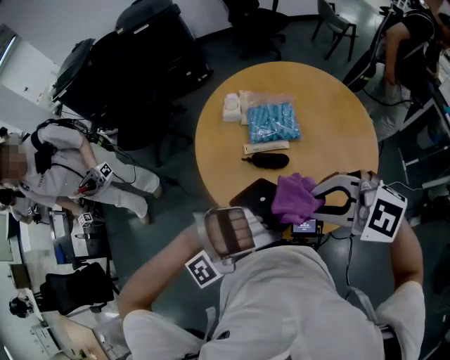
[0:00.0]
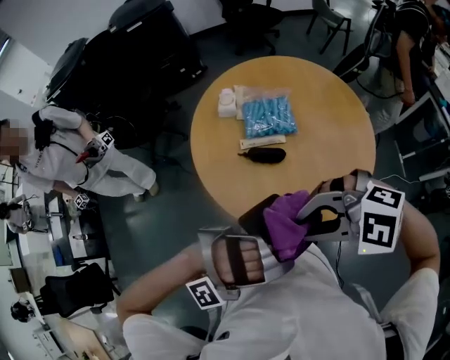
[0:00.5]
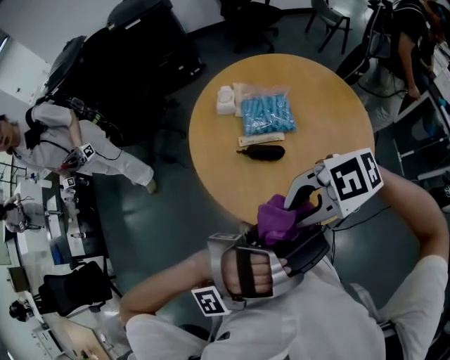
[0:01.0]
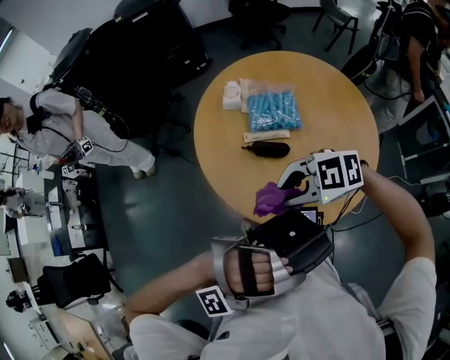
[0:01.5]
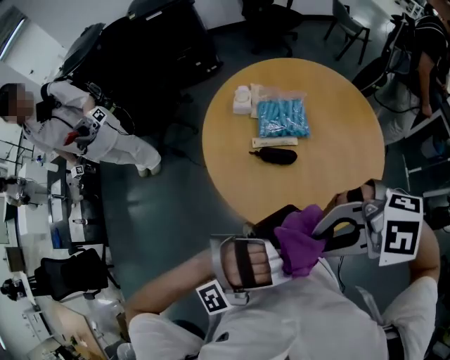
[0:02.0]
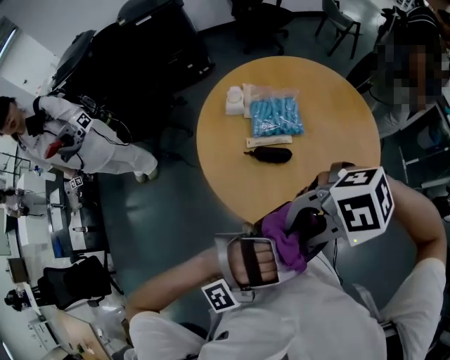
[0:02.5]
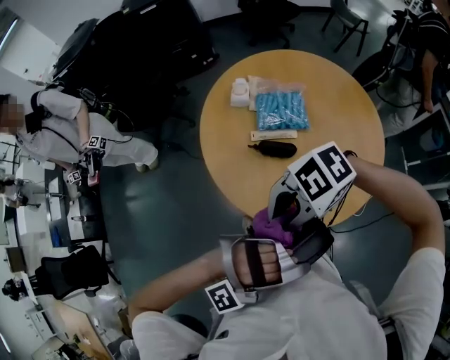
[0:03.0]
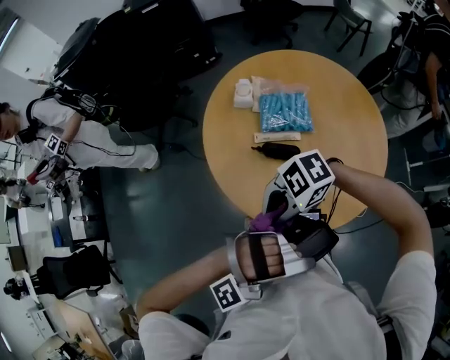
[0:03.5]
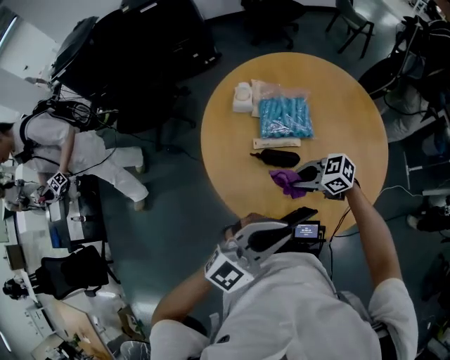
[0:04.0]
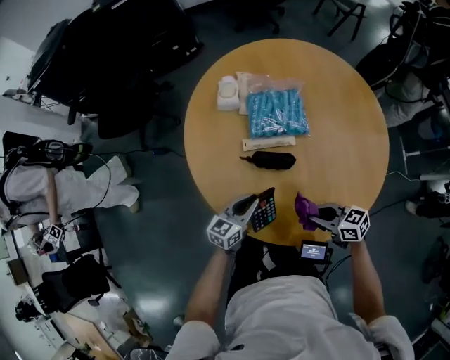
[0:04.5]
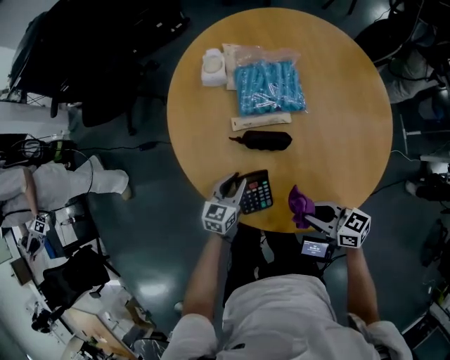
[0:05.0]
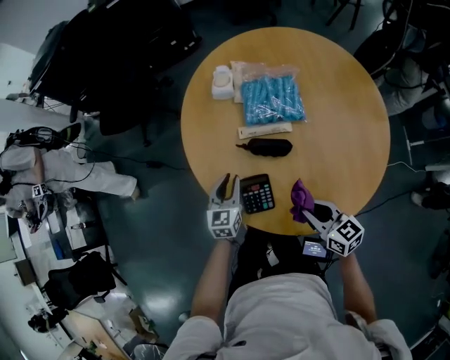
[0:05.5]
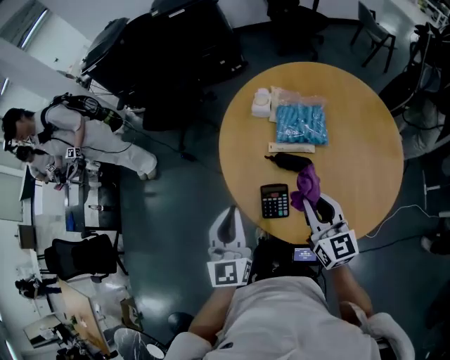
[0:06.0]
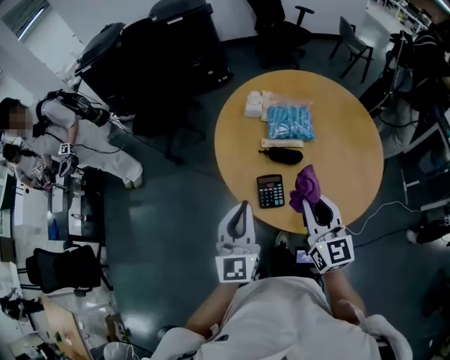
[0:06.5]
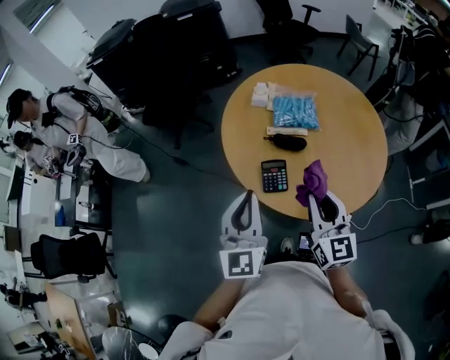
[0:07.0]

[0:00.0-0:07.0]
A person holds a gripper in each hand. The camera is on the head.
0:00.0 to 0:02.0: The right gripper travels downward and back again, approximately 10 cm each way, and swivels approximately 30 degrees. The left gripper ends up about 10 cm from where it was.
0:02.0 to 0:03.5: The right gripper goes about 15 cm downward, and rotates some 30 degrees.
0:03.5 to 0:05.0: The left gripper heads downward, covering some 40 cm, and twists roughly 100 degrees counterclockwise, seen from behind; the right gripper shifts roughly 20 cm downward, and turns by approximately 80 degrees.
0:05.0 to 0:07.0: The right gripper goes about 25 cm upward, and changes its angle by some 50 degrees. Meanwhile the left gripper goes some 50 cm upward and backward, and turns by some 50 degrees.

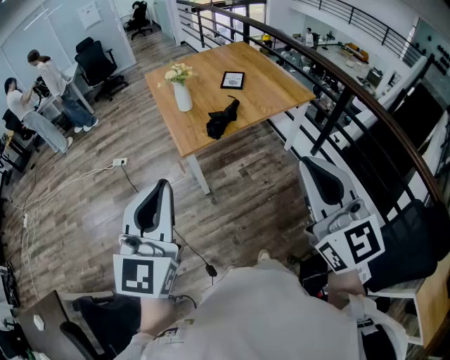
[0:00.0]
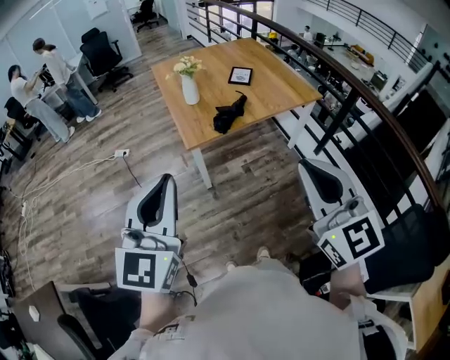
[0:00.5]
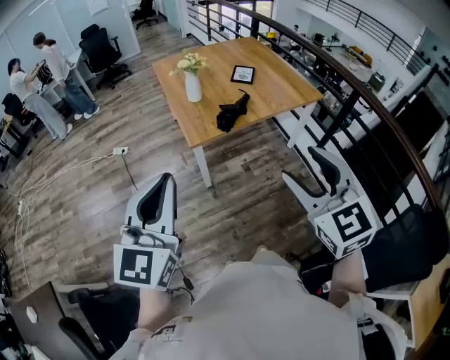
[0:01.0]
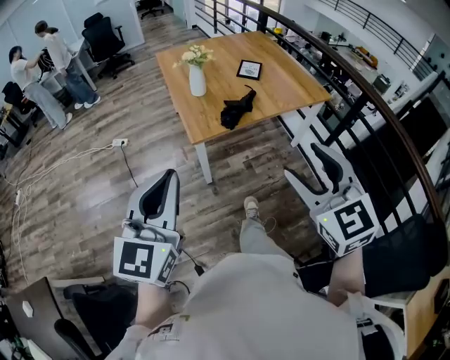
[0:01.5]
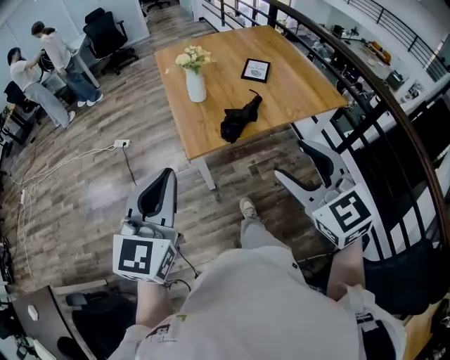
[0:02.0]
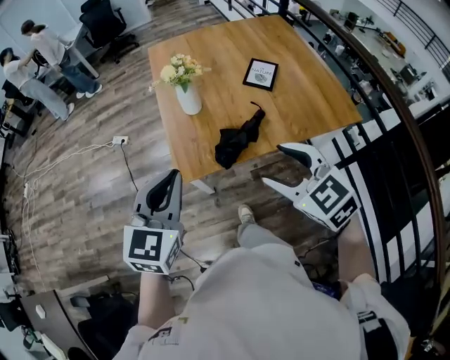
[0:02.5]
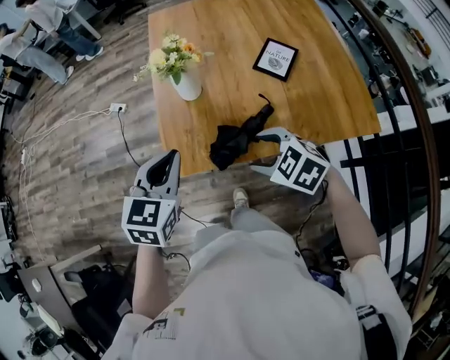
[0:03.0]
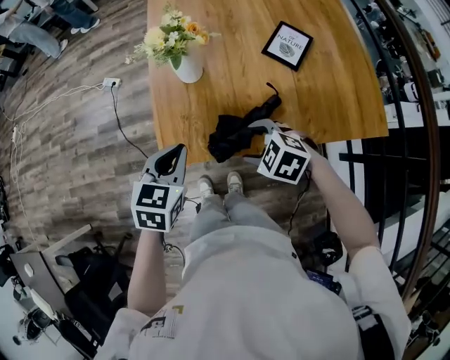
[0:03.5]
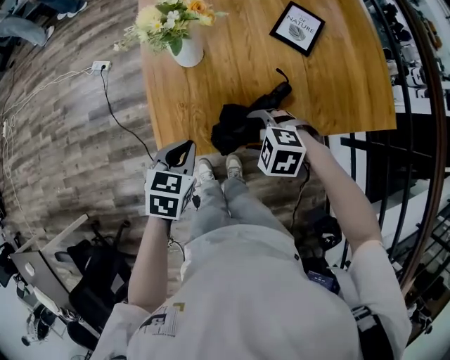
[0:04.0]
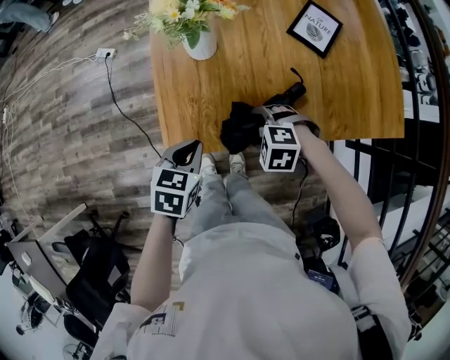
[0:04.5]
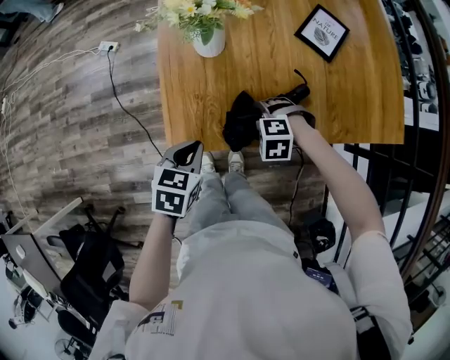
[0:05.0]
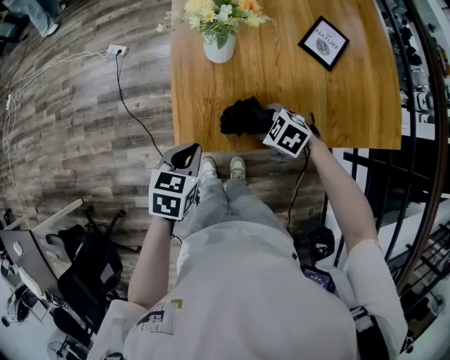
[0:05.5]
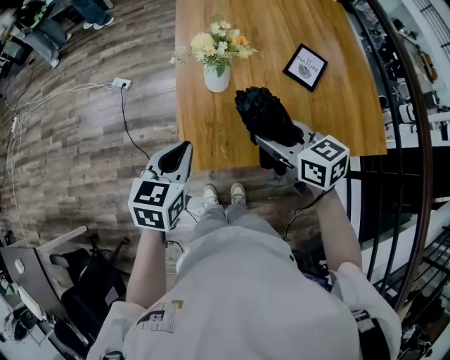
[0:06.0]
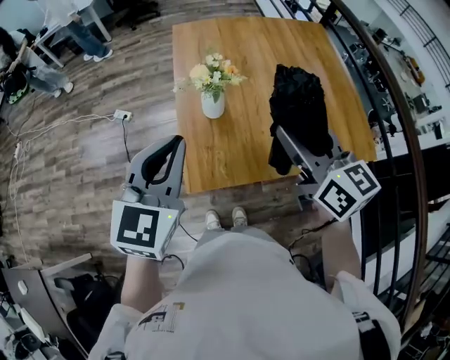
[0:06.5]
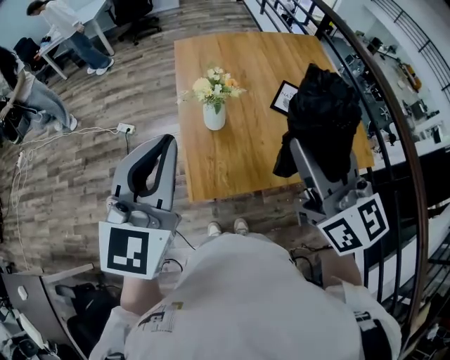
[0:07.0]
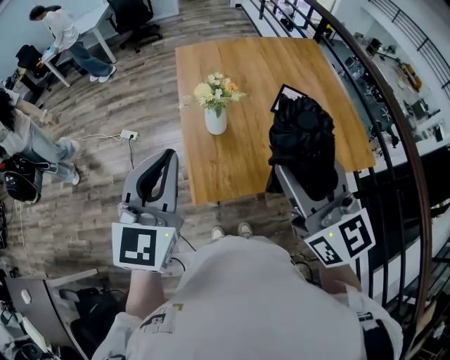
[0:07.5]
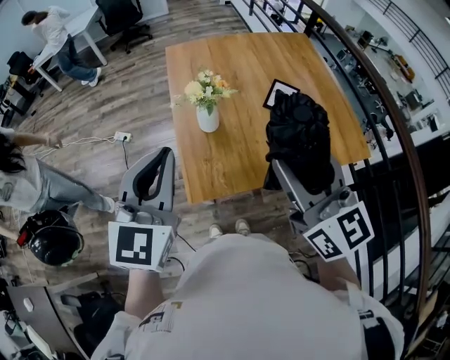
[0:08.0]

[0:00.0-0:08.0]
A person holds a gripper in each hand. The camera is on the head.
0:00.0 to 0:02.0: Both grippers move forward and downward, some 25 cm. The right gripper swivels approximately 30 degrees, and opens its fingers.
0:02.0 to 0:04.0: The right gripper goes approximately 40 cm downward, and points its fingers roughly 50 degrees further downward. Meanwhile the left gripper shifts by about 50 cm, and points its fingers about 50 degrees further downward.
0:04.0 to 0:06.0: Both grippers travel together upward, roughly 15 cm. The right gripper tilts its fingers roughly 40 degrees upward.
0:06.0 to 0:08.0: The two grippers go approximately 25 cm upward. The left gripper swivels some 40 degrees. Meanwhile the right gripper swivels approximately 40 degrees.

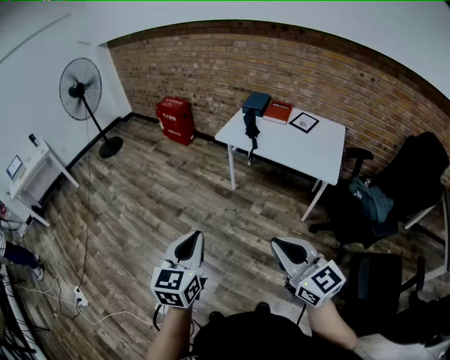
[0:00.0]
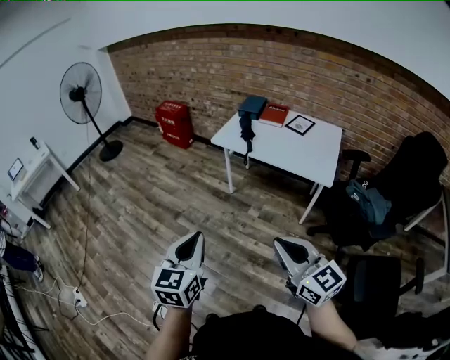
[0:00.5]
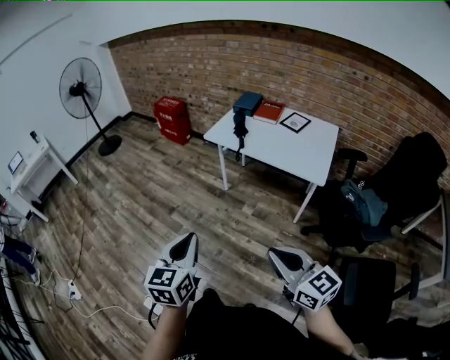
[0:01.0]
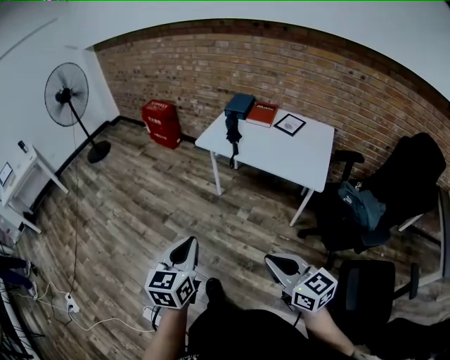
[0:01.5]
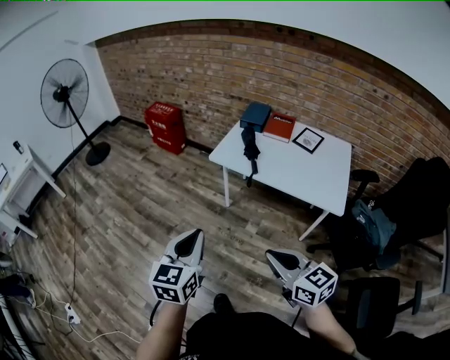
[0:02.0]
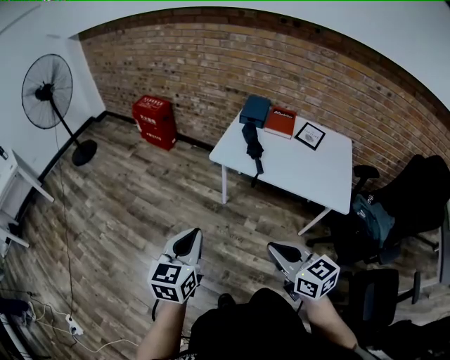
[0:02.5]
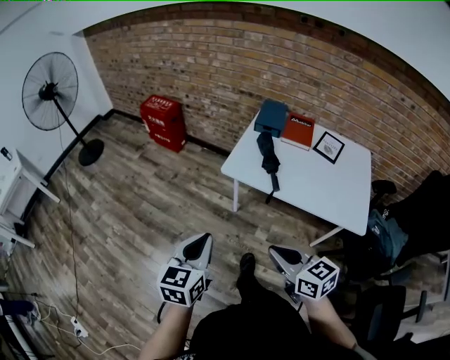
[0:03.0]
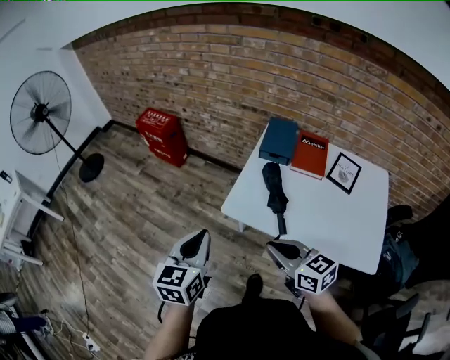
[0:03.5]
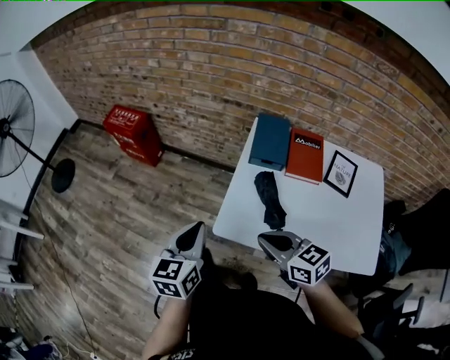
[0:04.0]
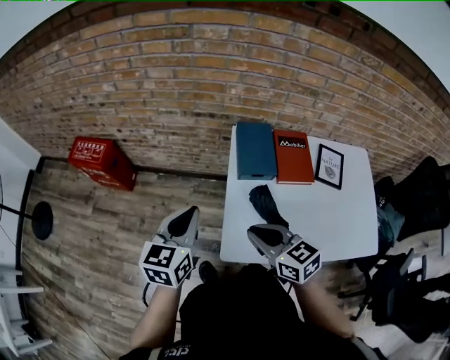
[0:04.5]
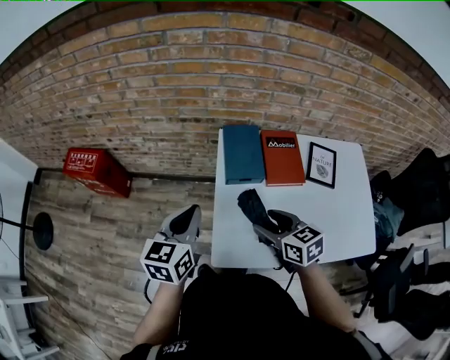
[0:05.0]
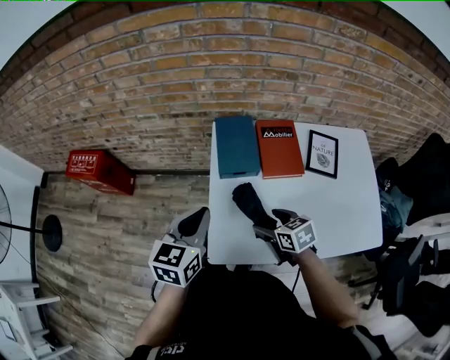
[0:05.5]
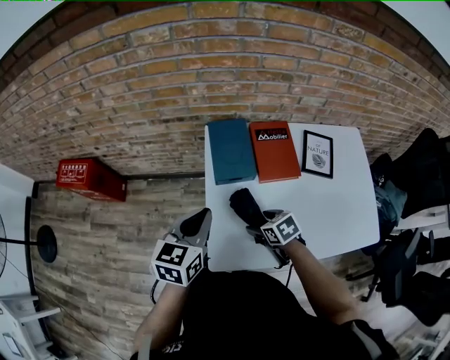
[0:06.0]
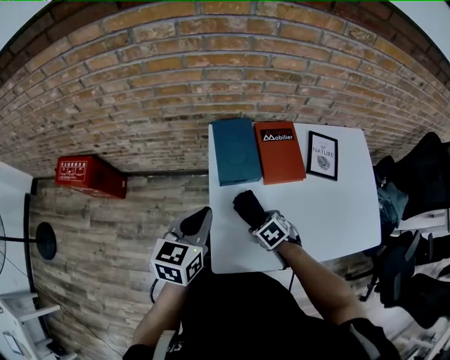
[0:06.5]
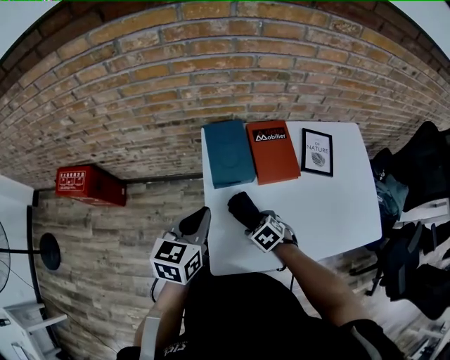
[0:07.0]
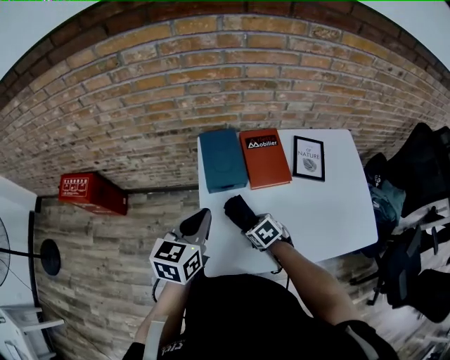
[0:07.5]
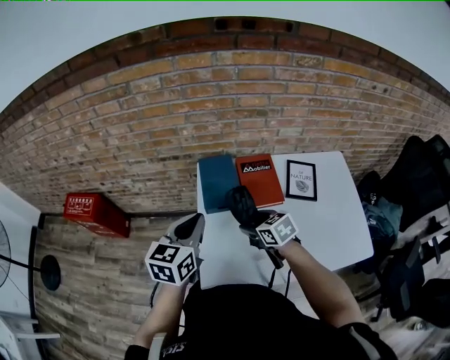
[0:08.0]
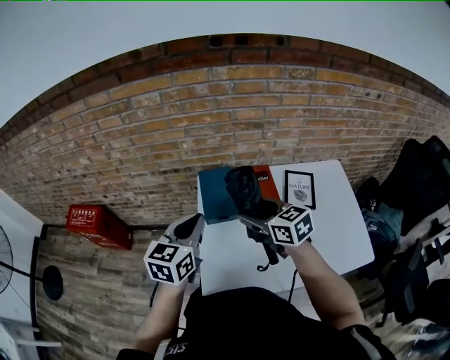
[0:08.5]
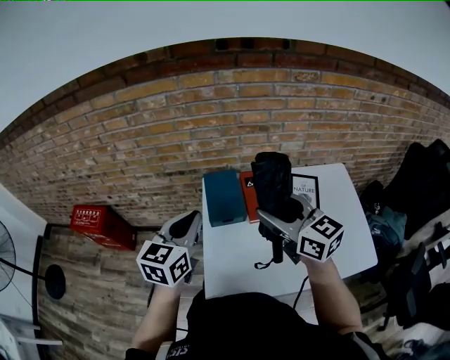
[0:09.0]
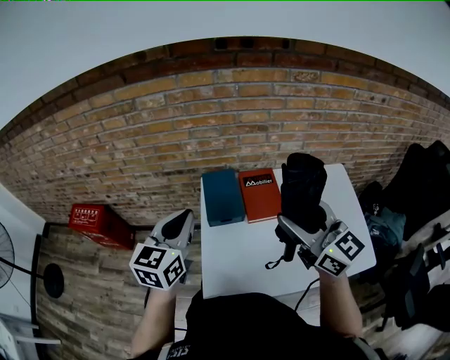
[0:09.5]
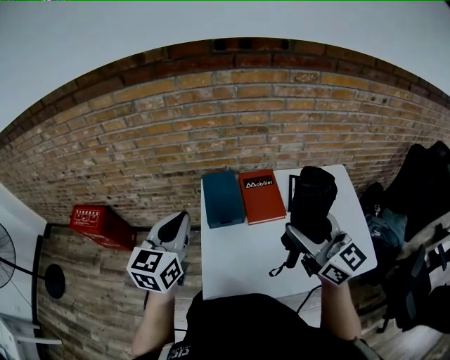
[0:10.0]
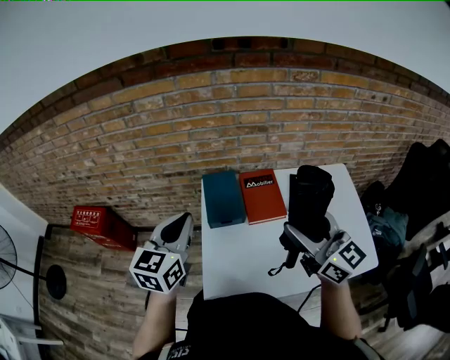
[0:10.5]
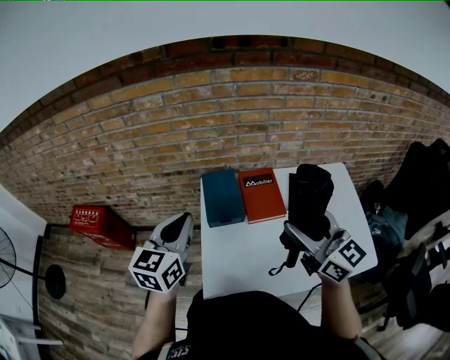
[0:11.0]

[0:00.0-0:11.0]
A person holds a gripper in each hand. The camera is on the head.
0:00.0 to 0:02.0: The right gripper shifts approximately 20 cm forward and downward. The left gripper goes some 20 cm forward.
0:02.0 to 0:03.5: The two grippers travel together, forward, approximately 40 cm.
0:03.5 to 0:05.5: The left gripper shifts by roughly 35 cm, and turns by some 30 degrees. Meanwhile the right gripper shifts by approximately 30 cm, rotates some 40 degrees, and opens.
0:05.5 to 0:07.5: The right gripper moves downward, some 10 cm, and rotates some 20 degrees.
0:07.5 to 0:09.0: The left gripper moves upward, roughly 10 cm; the right gripper goes about 40 cm upward, and points its fingers about 60 degrees further upward.
0:09.0 to 0:11.0: The right gripper moves to the right and backward, approximately 10 cm.
